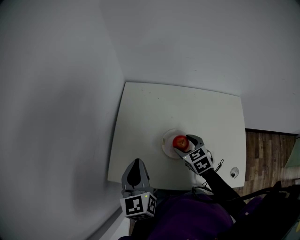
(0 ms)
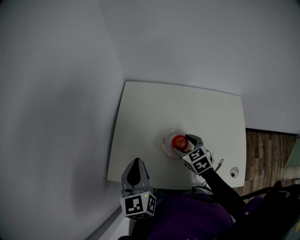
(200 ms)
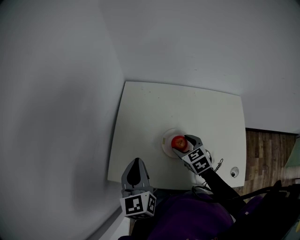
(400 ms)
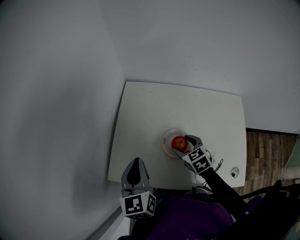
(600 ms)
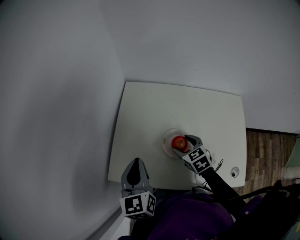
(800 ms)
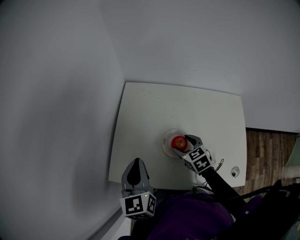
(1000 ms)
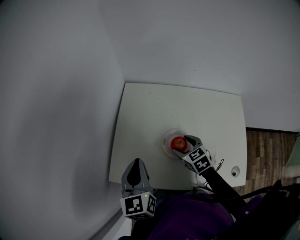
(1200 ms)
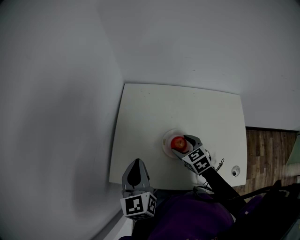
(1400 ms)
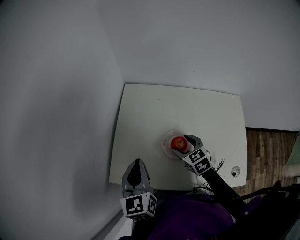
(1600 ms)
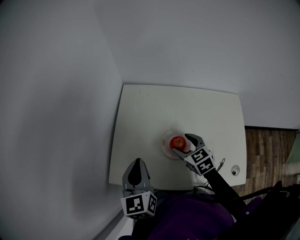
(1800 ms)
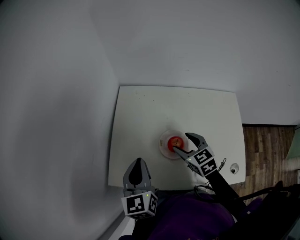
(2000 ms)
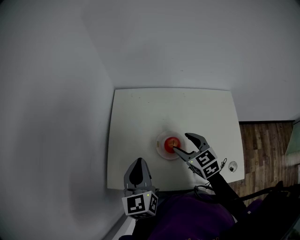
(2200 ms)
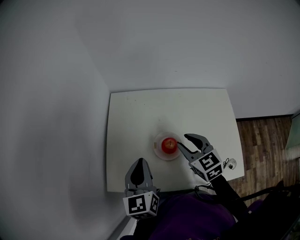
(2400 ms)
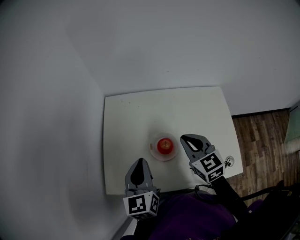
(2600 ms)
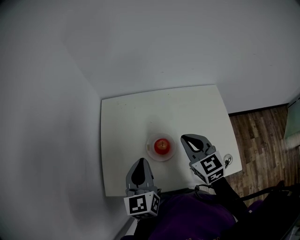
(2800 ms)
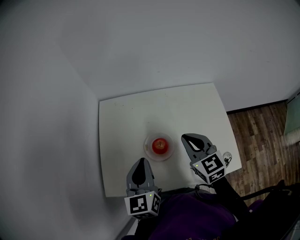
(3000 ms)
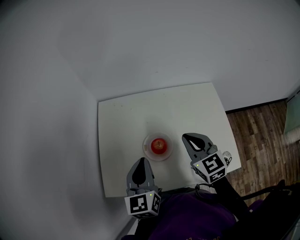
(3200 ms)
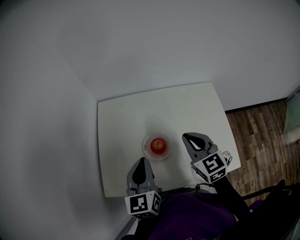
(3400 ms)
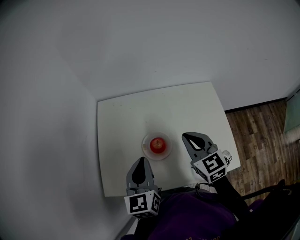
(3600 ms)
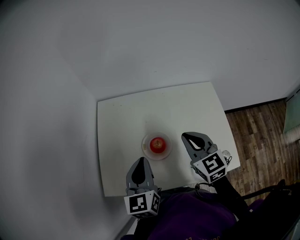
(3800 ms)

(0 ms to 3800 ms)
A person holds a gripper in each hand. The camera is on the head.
0 ms - 1200 ms: Both grippers stay put.
1200 ms - 2600 ms: The left gripper moves to the right, some 5 cm. Meanwhile the right gripper is displaced upward and to the right by some 15 cm, changes its angle by roughly 20 degrees, and closes up.
2600 ms - 3800 ms: The grippers move only a little.

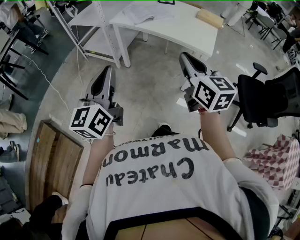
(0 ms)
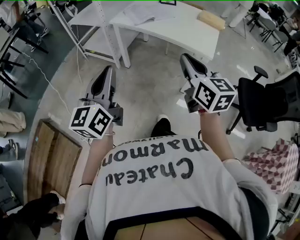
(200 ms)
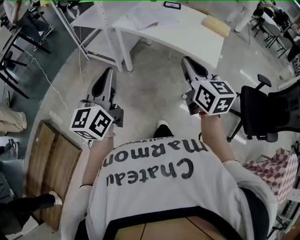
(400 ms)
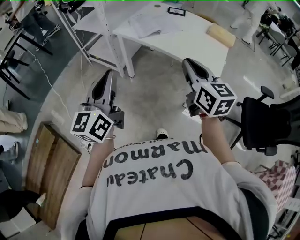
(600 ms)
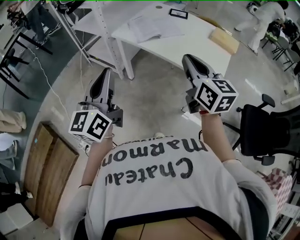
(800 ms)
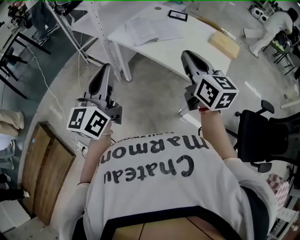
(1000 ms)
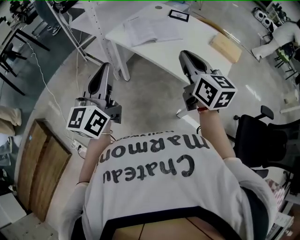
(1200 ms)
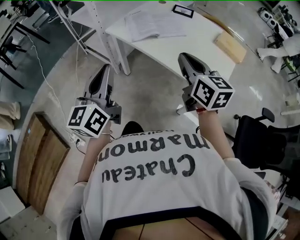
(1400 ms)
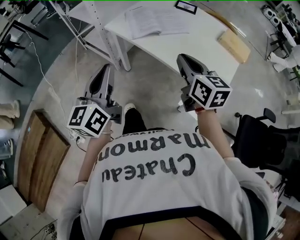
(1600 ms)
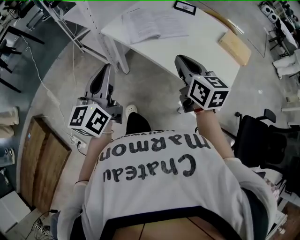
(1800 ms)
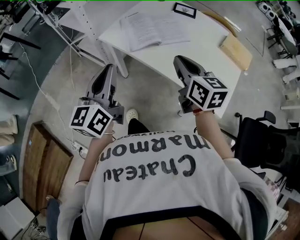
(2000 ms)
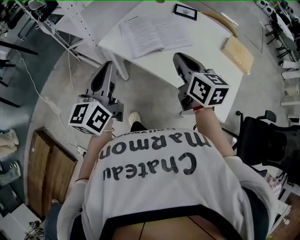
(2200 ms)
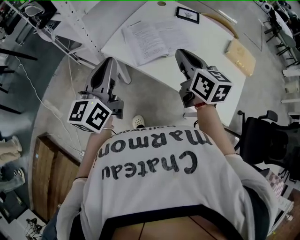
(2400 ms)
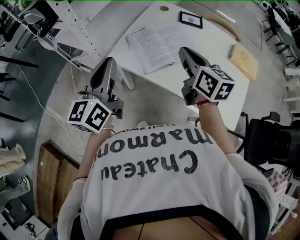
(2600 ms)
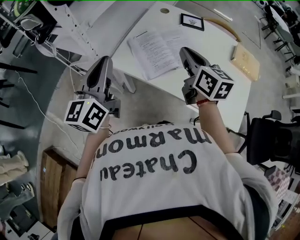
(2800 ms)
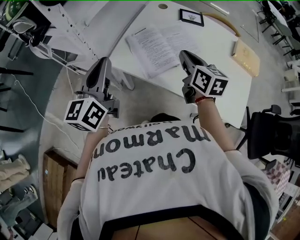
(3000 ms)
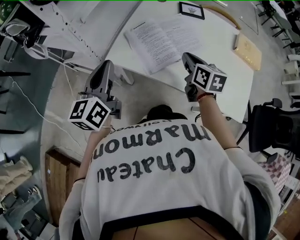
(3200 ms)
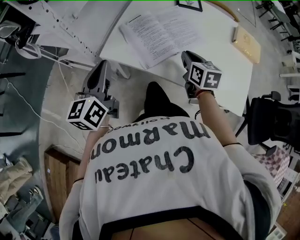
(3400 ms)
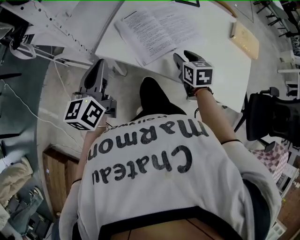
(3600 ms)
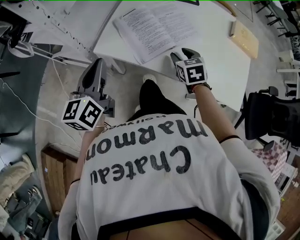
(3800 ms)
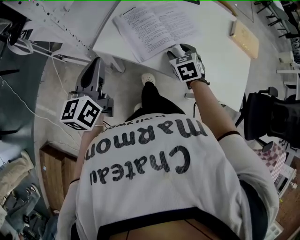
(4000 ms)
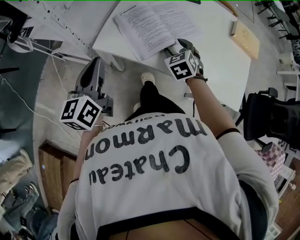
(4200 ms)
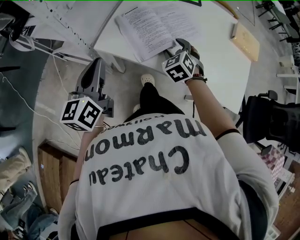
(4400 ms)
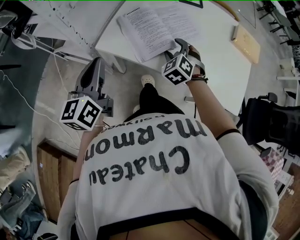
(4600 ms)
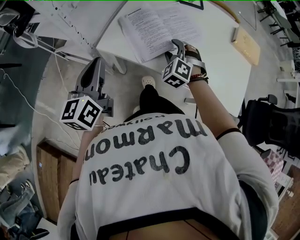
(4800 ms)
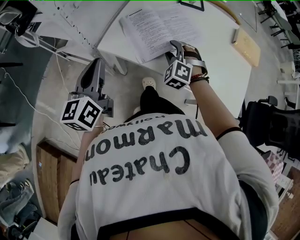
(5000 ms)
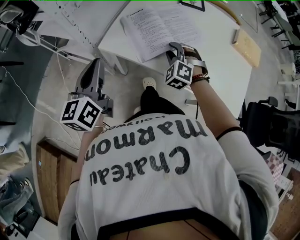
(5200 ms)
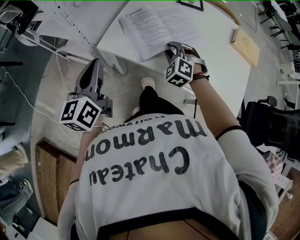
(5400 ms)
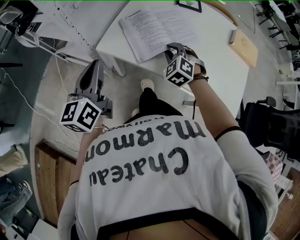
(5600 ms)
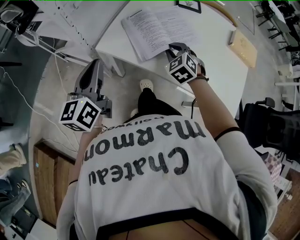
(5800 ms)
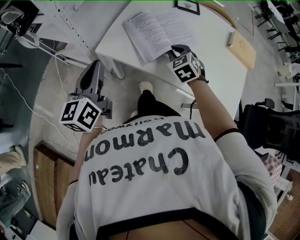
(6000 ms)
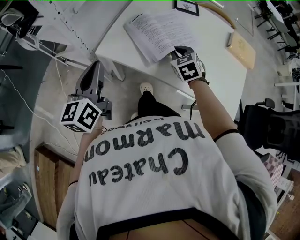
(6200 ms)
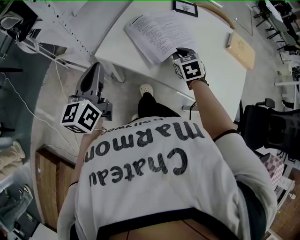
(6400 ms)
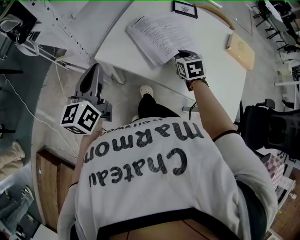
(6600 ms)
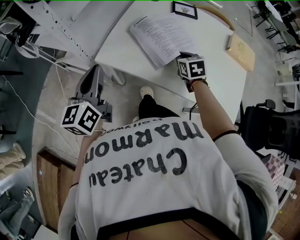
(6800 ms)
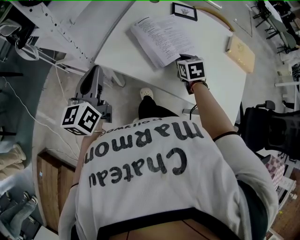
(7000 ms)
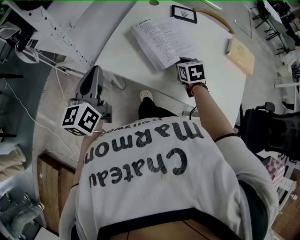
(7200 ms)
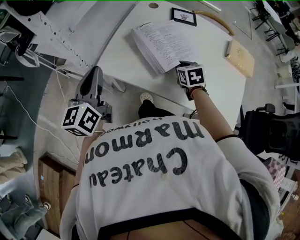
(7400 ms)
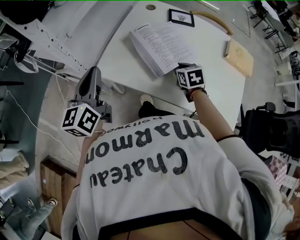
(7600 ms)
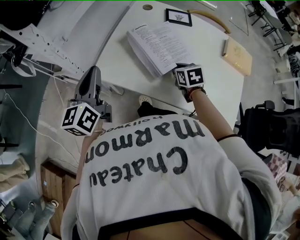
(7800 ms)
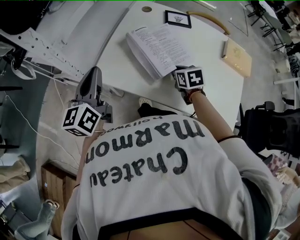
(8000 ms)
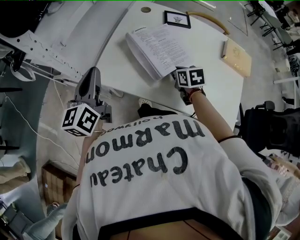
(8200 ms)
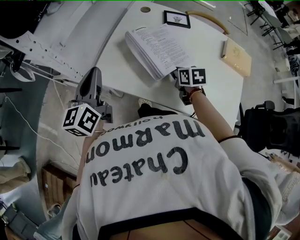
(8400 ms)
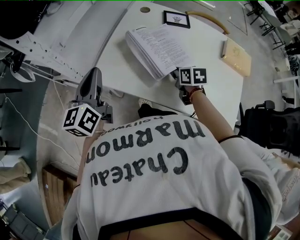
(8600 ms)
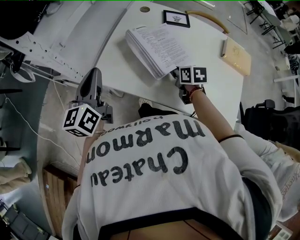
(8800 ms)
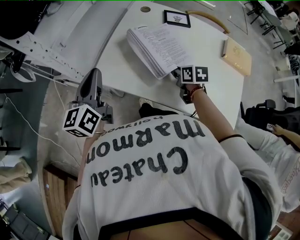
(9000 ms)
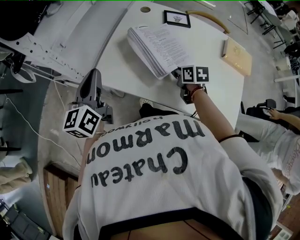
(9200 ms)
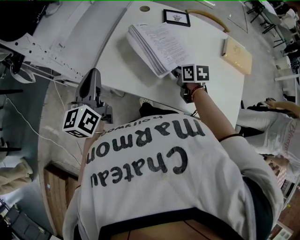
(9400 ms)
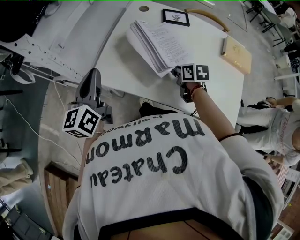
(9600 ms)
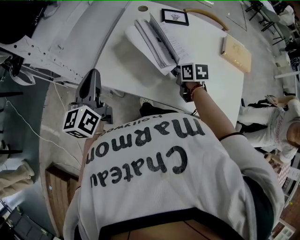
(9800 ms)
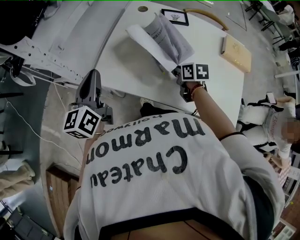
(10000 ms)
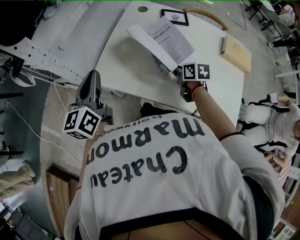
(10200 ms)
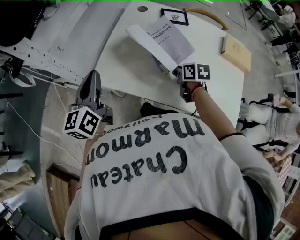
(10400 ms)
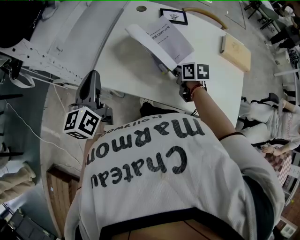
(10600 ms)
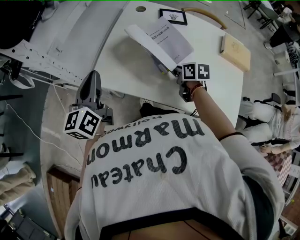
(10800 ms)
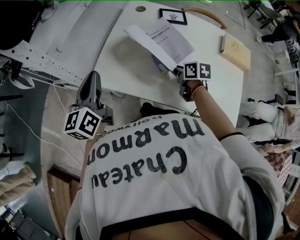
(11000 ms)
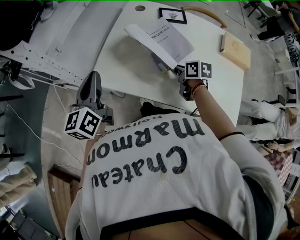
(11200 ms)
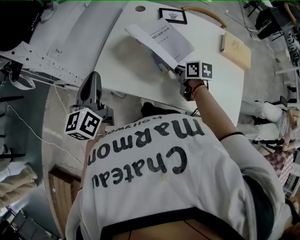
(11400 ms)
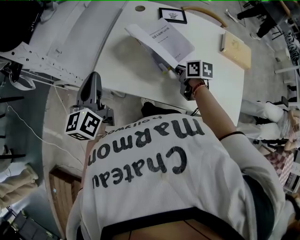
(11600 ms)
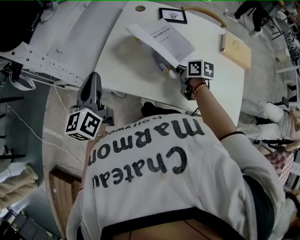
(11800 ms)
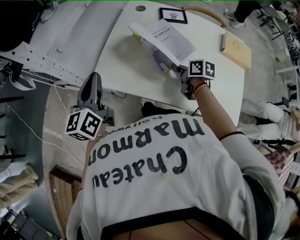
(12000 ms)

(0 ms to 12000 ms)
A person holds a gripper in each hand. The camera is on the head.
0 ms - 1600 ms: Both grippers move forward, about 30 cm.
1600 ms - 3000 ms: The two grippers go some 30 cm forward.
3000 ms - 4400 ms: The right gripper shifts some 15 cm downward, twists approximately 50 degrees counterclockwise, seen from behind, and opens. Meanwhile the left gripper moves downward, approximately 10 cm.
4400 ms - 6000 ms: The right gripper closes up.
6000 ms - 7600 ms: The left gripper heads forward, covering about 5 cm; the right gripper moves to the right, about 5 cm, and turns by some 30 degrees.
7600 ms - 9000 ms: The right gripper rotates roughly 20 degrees.
9000 ms - 12000 ms: The grippers make only small movements.

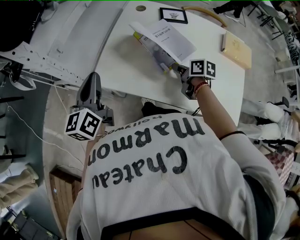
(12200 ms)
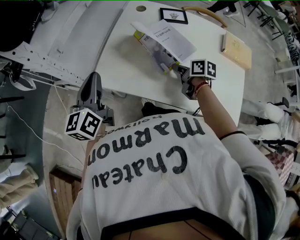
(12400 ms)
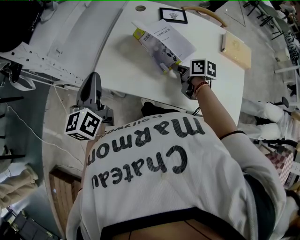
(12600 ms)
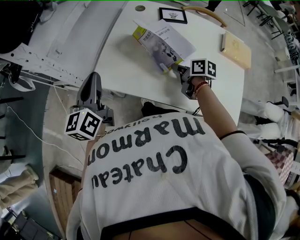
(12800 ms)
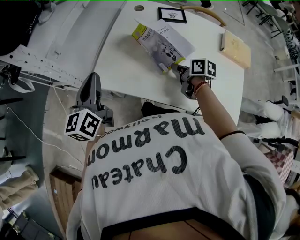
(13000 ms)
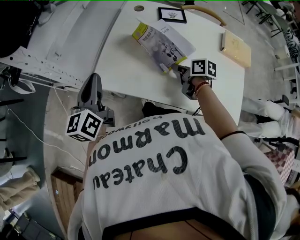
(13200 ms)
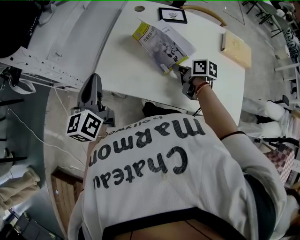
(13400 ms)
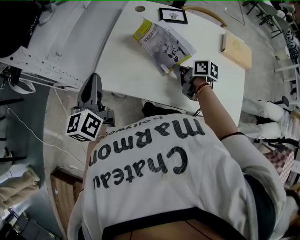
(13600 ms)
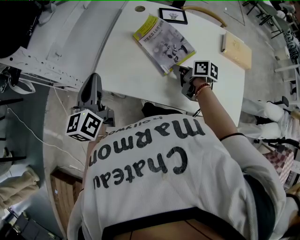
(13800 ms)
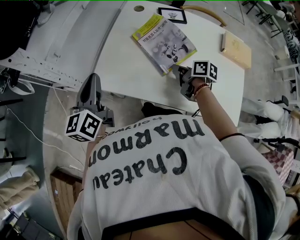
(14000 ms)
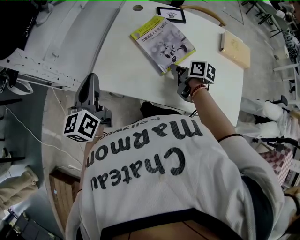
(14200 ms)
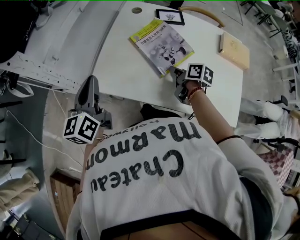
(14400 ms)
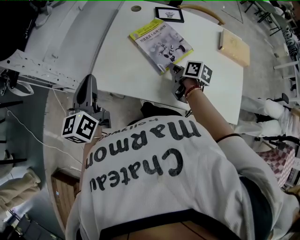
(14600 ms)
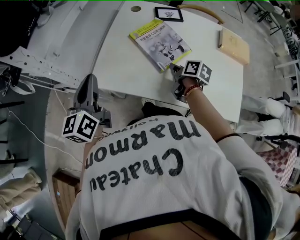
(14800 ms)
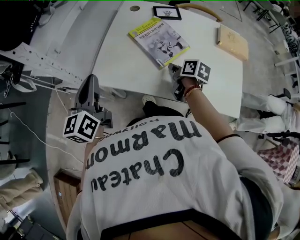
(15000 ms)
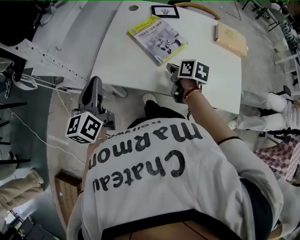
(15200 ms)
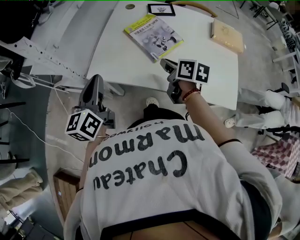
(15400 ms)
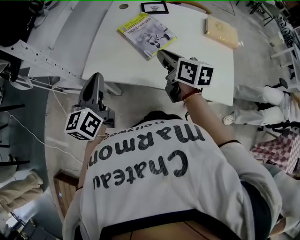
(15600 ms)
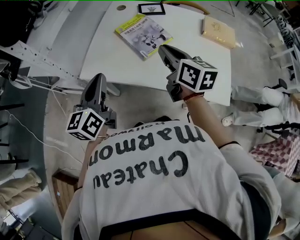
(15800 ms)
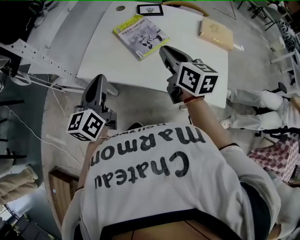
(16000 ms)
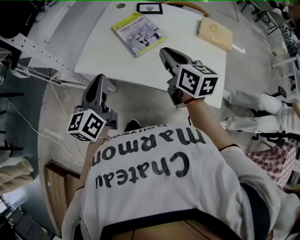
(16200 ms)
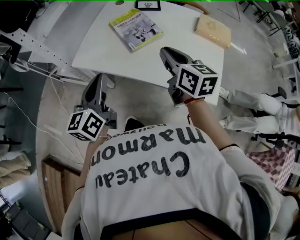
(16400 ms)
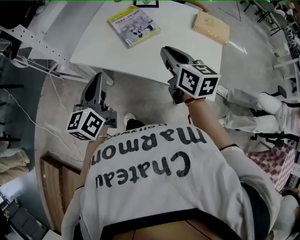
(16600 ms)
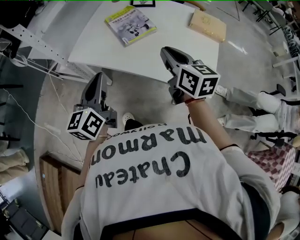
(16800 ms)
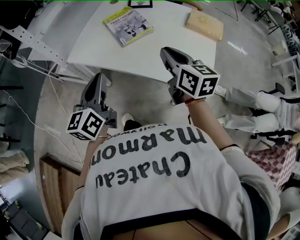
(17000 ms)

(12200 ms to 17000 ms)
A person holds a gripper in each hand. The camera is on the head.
12200 ms - 13800 ms: The grippers make only small movements.
13800 ms - 15400 ms: The left gripper goes approximately 10 cm backward, while the right gripper is displaced upward and backward by approximately 10 cm.
15400 ms - 17000 ms: The left gripper shifts some 20 cm to the right and backward, while the right gripper is displaced backward, to the right and upward by some 20 cm, and changes its angle by approximately 30 degrees.

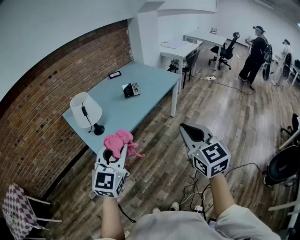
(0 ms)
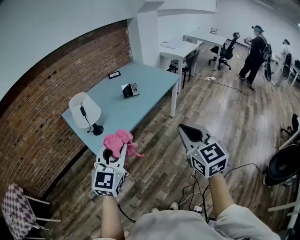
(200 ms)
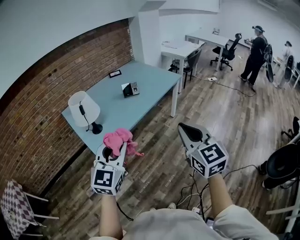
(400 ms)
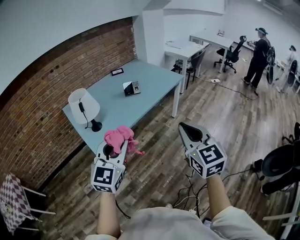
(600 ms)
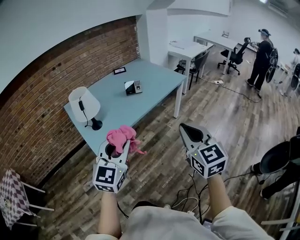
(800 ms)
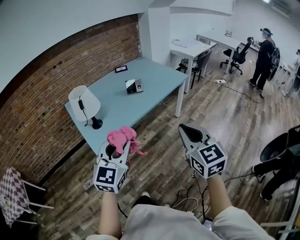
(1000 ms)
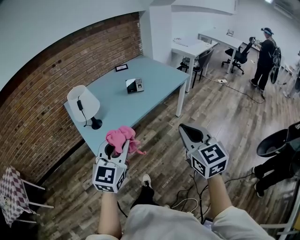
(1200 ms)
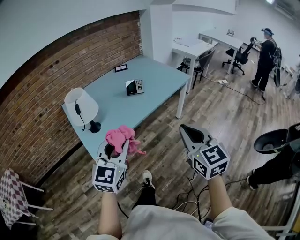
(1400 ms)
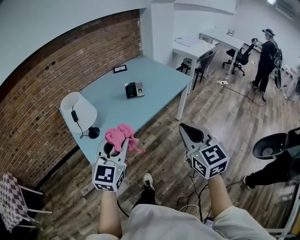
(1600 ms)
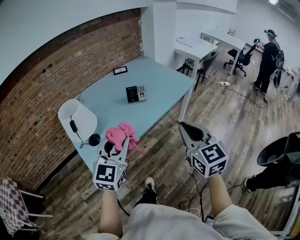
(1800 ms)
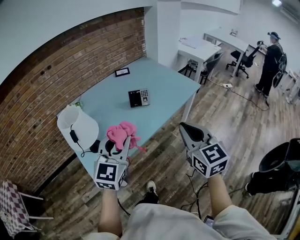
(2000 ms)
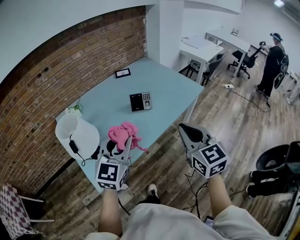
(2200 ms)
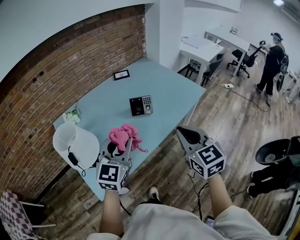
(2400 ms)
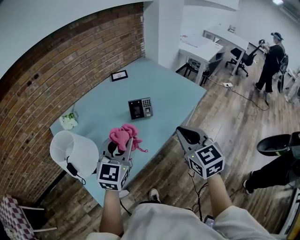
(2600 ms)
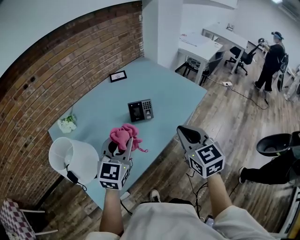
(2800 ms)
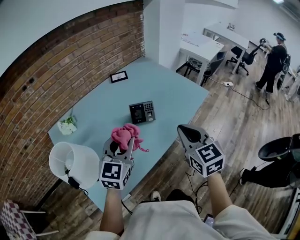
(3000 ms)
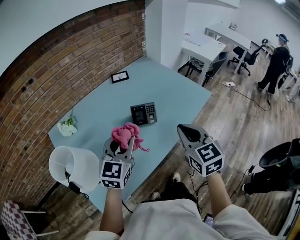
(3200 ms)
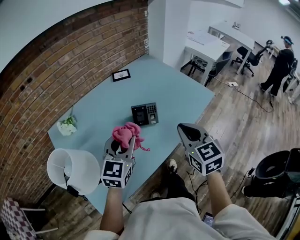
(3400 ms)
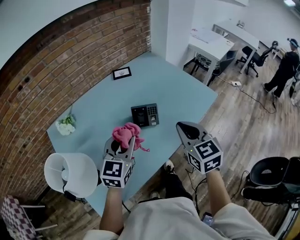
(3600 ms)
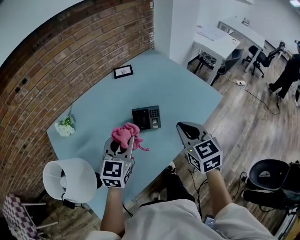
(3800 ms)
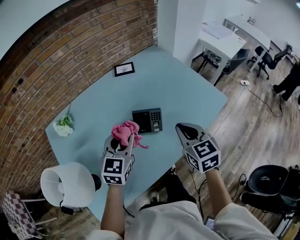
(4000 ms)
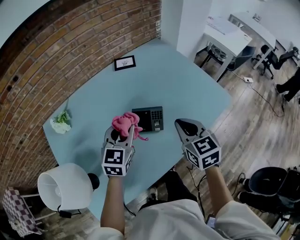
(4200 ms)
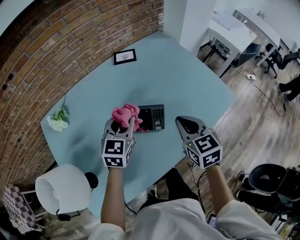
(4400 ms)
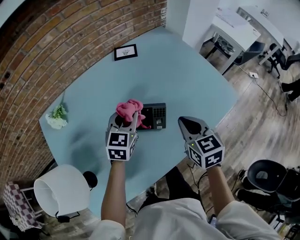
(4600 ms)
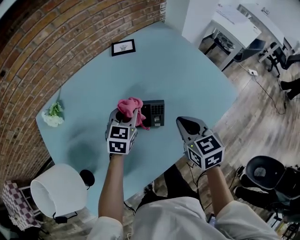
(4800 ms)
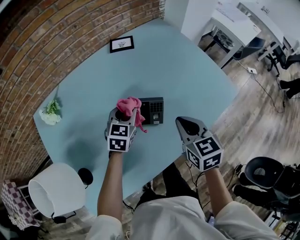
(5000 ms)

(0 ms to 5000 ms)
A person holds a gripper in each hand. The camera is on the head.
0 ms - 1600 ms: Both grippers travel together forward, about 15 cm.
1600 ms - 3400 ms: Both grippers move forward, about 35 cm.
3400 ms - 5000 ms: The grippers both shift forward and downward by roughly 25 cm. The left gripper swivels approximately 20 degrees.
